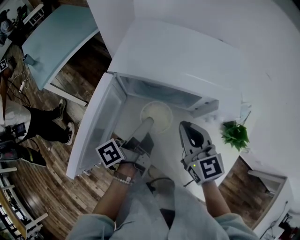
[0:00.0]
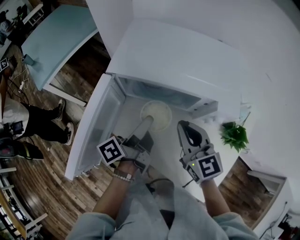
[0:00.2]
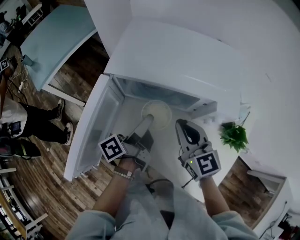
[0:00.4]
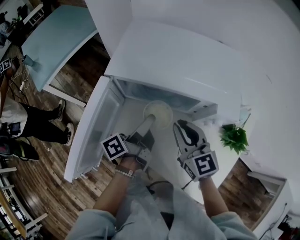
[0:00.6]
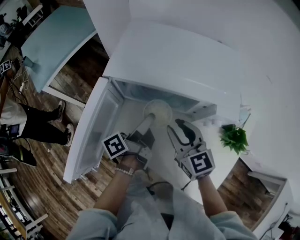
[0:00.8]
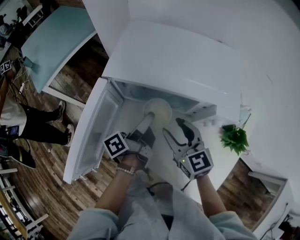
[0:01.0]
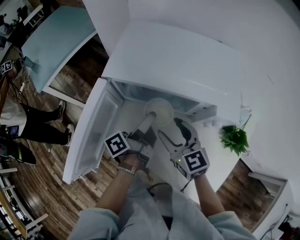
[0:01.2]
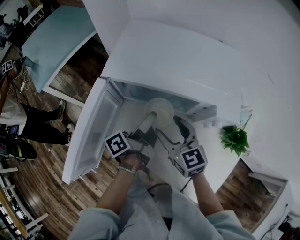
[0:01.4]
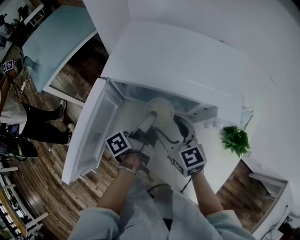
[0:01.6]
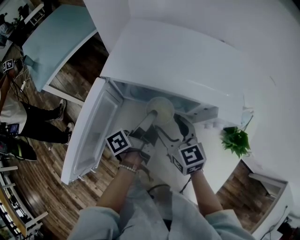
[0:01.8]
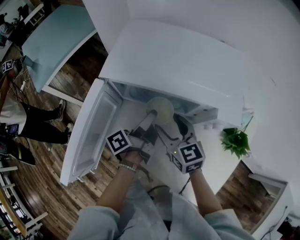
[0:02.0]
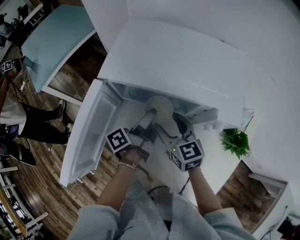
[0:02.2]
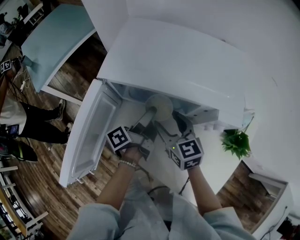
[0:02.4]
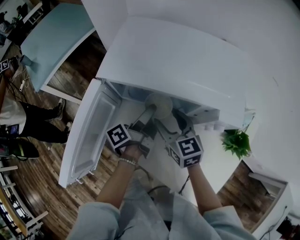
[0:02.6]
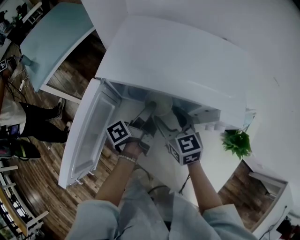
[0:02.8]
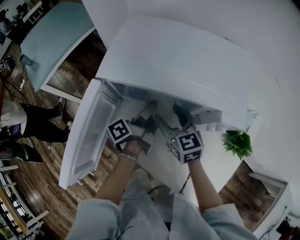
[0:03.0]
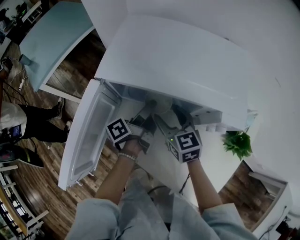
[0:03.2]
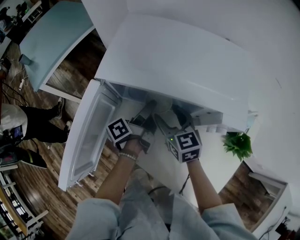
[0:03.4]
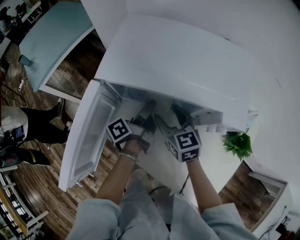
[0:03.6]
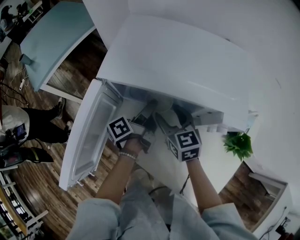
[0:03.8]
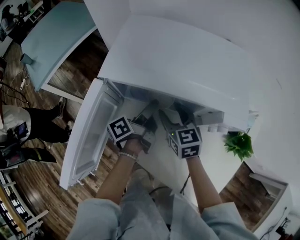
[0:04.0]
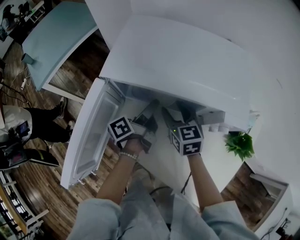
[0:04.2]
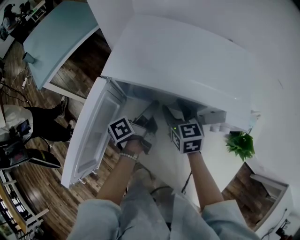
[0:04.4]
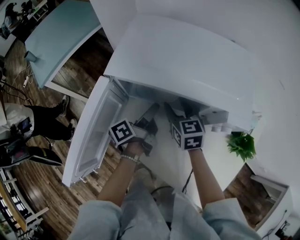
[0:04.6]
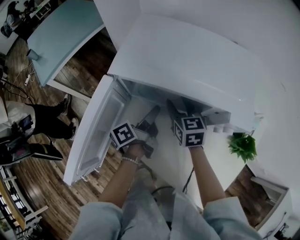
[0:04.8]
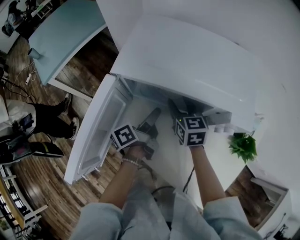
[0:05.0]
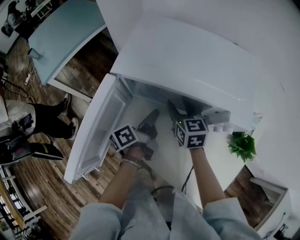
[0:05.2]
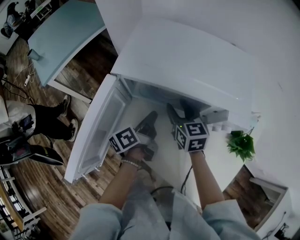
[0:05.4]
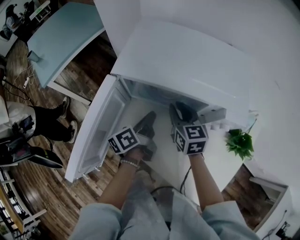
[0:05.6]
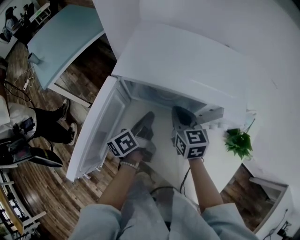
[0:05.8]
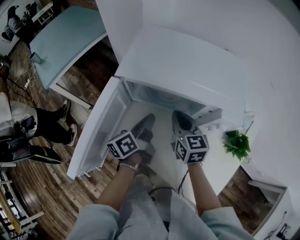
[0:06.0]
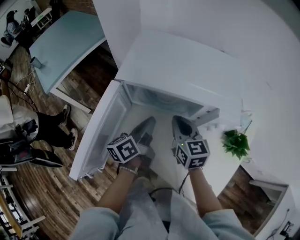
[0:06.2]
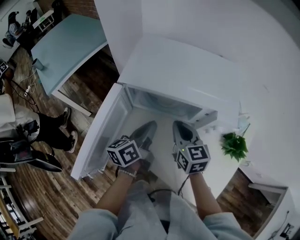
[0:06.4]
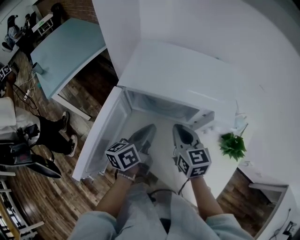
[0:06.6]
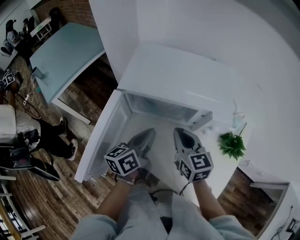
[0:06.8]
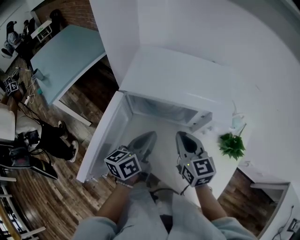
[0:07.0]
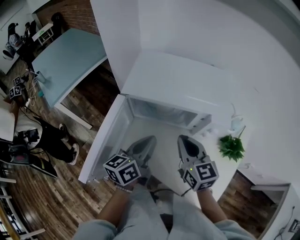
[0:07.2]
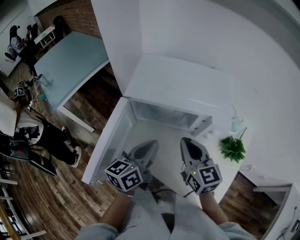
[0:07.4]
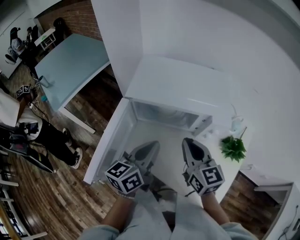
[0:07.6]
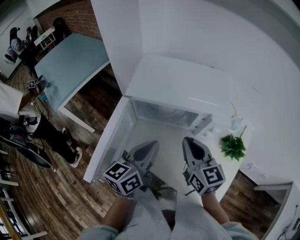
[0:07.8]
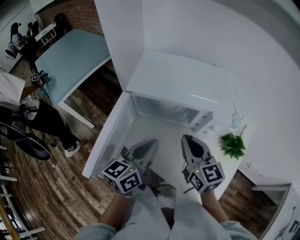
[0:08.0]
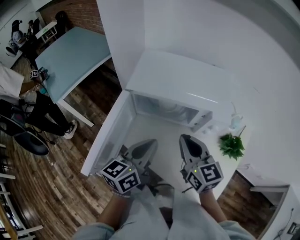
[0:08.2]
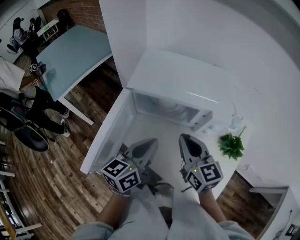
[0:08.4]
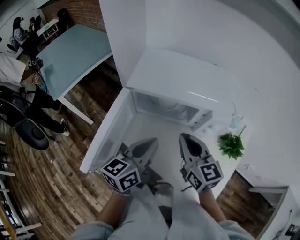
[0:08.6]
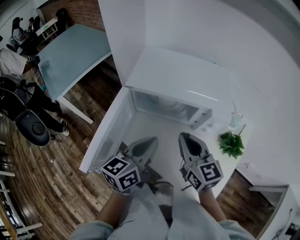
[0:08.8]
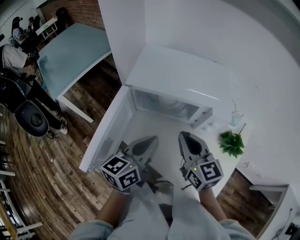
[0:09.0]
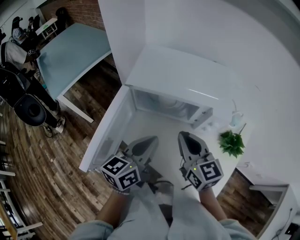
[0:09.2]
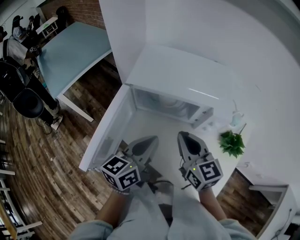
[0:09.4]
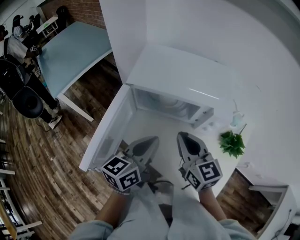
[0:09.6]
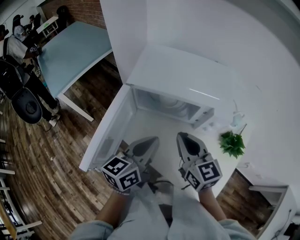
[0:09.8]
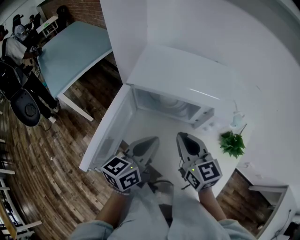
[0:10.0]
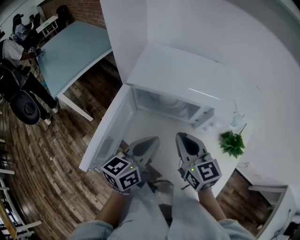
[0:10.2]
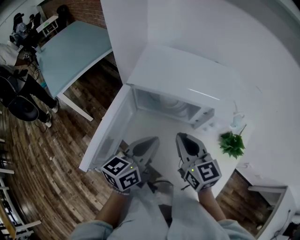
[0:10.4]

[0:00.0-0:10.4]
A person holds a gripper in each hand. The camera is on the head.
0:00.0 to 0:01.4: The right gripper is displaced downward by about 5 cm, and opens.
0:01.4 to 0:03.0: The right gripper moves some 5 cm.
0:04.4 to 0:06.0: The right gripper changes place by some 5 cm, and closes its fingers.
0:06.0 to 0:07.4: The right gripper goes approximately 10 cm upward.

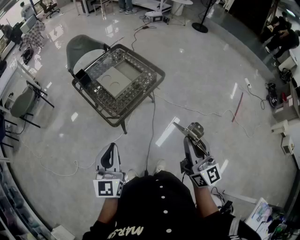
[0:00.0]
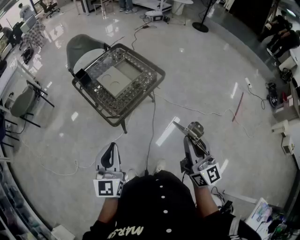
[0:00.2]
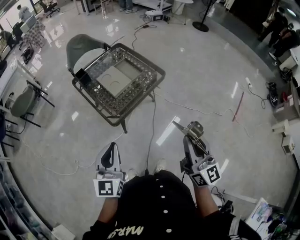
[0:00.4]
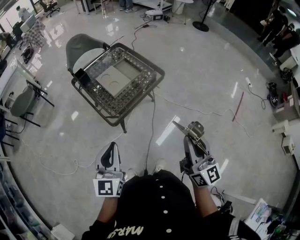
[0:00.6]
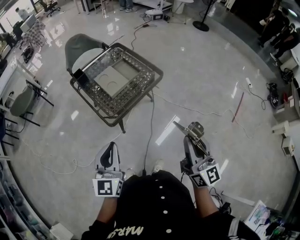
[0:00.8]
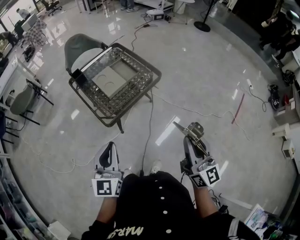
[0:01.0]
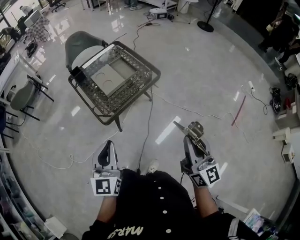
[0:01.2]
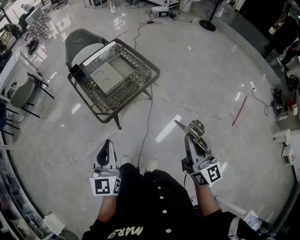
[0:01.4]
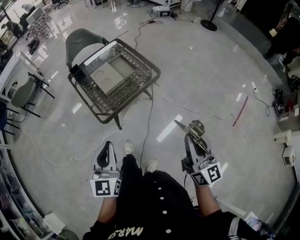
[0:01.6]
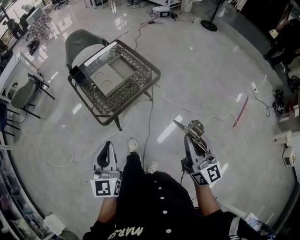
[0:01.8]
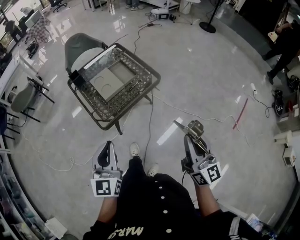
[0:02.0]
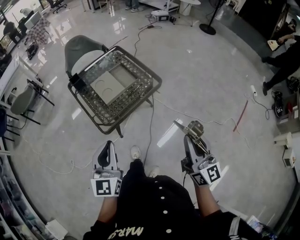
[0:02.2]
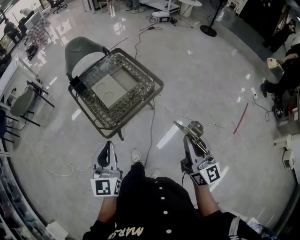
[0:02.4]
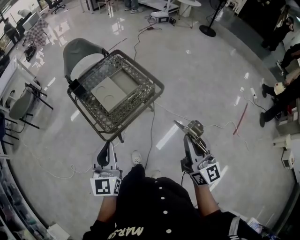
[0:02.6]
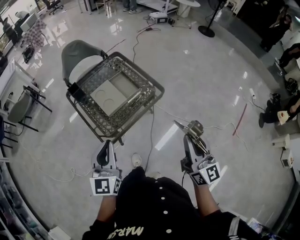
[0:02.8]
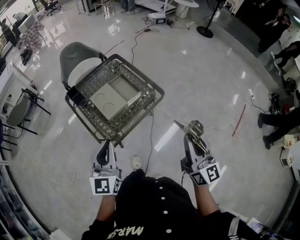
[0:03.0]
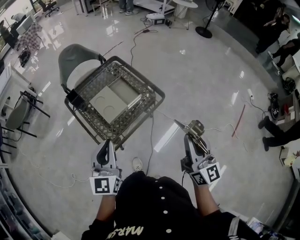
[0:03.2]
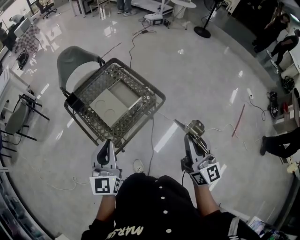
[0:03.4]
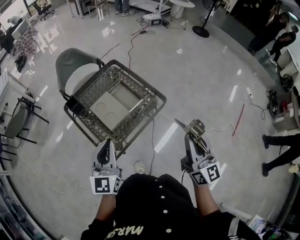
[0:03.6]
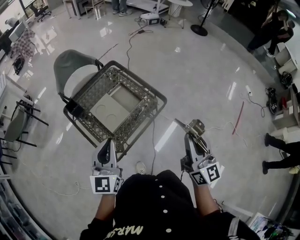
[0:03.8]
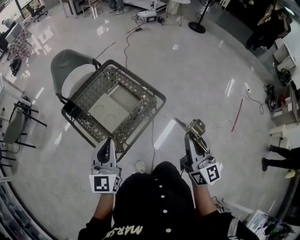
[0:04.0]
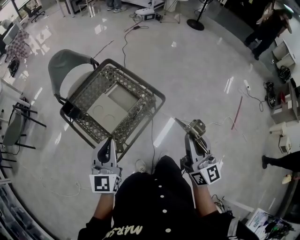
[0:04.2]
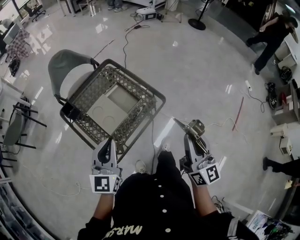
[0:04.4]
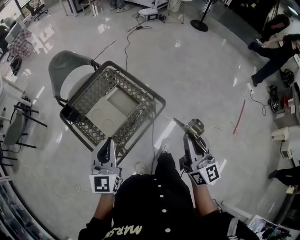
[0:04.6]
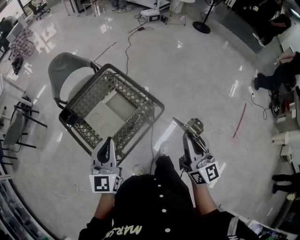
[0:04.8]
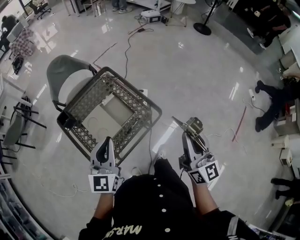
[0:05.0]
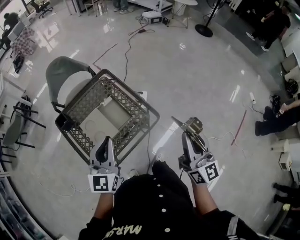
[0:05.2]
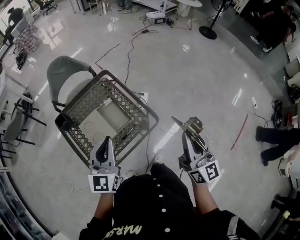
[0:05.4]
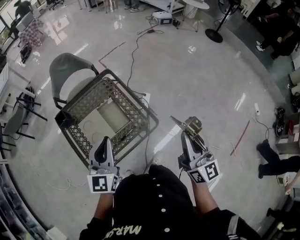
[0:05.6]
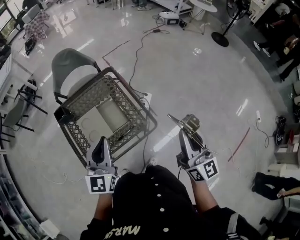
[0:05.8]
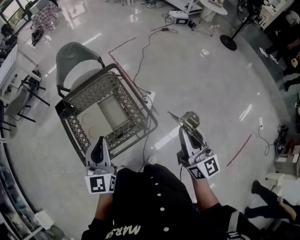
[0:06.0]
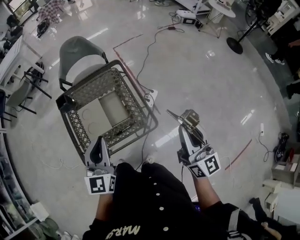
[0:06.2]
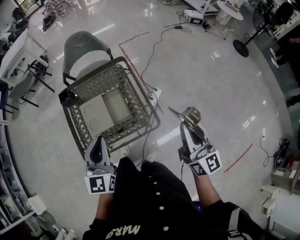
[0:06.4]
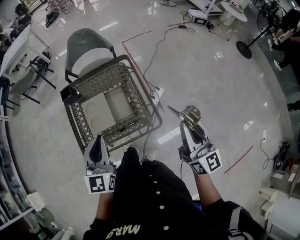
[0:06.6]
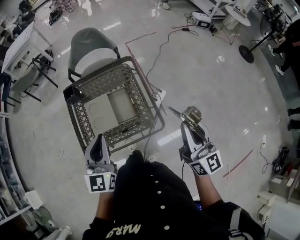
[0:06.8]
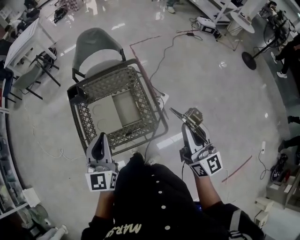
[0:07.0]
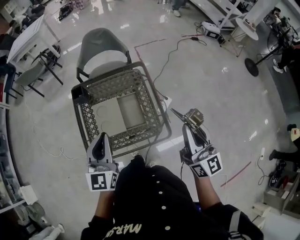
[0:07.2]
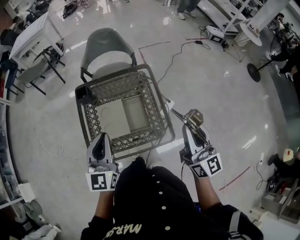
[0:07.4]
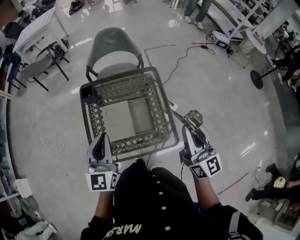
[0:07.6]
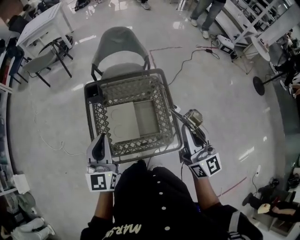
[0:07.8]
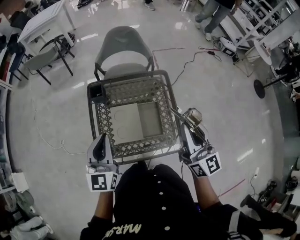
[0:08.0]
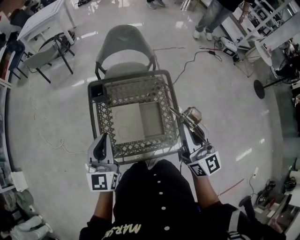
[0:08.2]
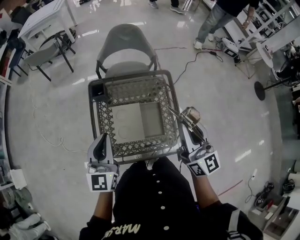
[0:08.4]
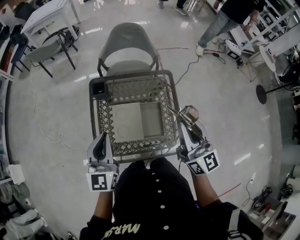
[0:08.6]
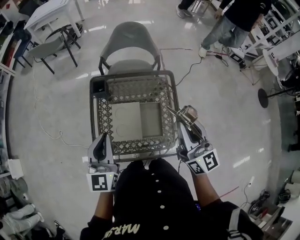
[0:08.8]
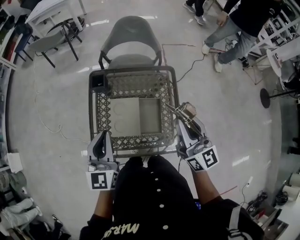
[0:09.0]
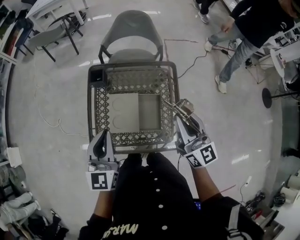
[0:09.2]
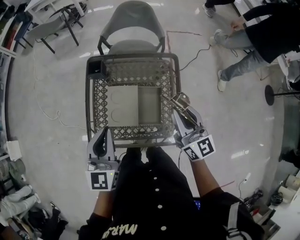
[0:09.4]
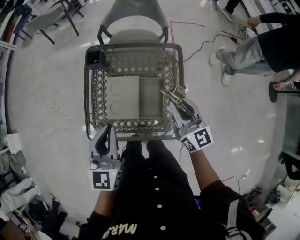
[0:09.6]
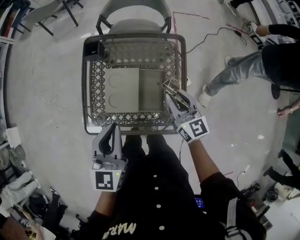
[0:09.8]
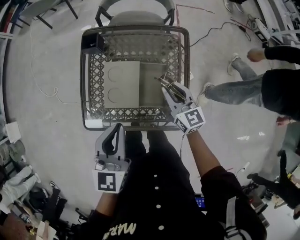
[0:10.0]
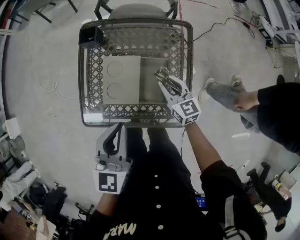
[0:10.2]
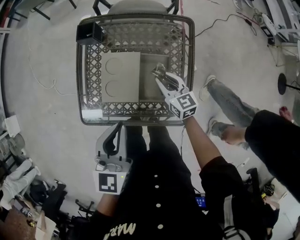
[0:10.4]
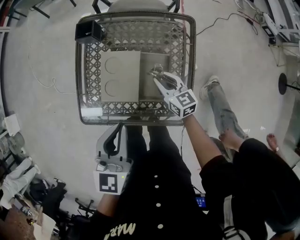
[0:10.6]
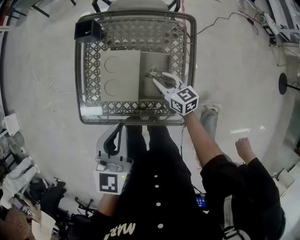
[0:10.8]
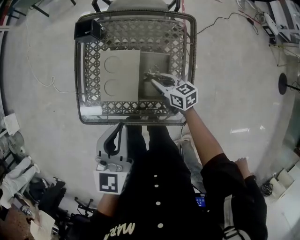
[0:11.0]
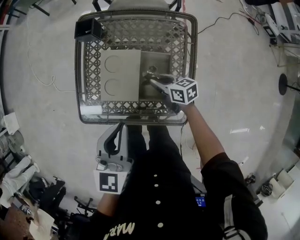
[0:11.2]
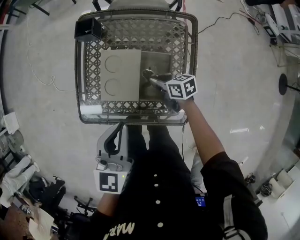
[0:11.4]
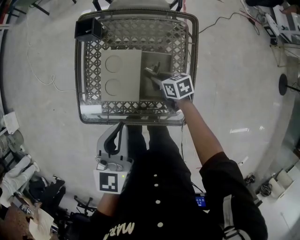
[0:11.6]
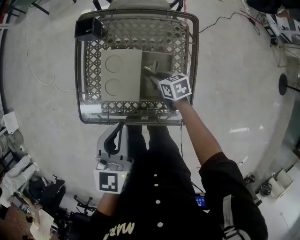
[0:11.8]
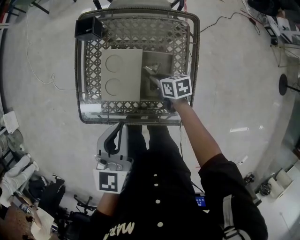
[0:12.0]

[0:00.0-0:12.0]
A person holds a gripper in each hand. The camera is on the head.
0:00.0 to 0:01.6: The grippers both shift to the right by some 10 cm.
0:01.6 to 0:03.0: The grippers both shift forward by roughly 20 cm.
0:03.0 to 0:04.4: Both grippers move forward, about 10 cm.
0:04.4 to 0:06.0: Both grippers travel together forward and to the right, roughly 25 cm. The right gripper changes its angle by about 20 degrees, while the left gripper turns by about 20 degrees.
0:06.0 to 0:07.6: The right gripper travels forward and to the left by some 20 cm. Meanwhile the left gripper is displaced to the left and forward by some 15 cm.
0:07.6 to 0:09.0: The right gripper is displaced forward and to the left by roughly 10 cm.
0:09.0 to 0:10.4: The left gripper travels downward, to the right and backward by approximately 15 cm; the right gripper goes approximately 35 cm downward, and swivels about 30 degrees.
0:10.4 to 0:12.0: The right gripper moves downward, roughly 10 cm, and changes its angle by about 40 degrees.

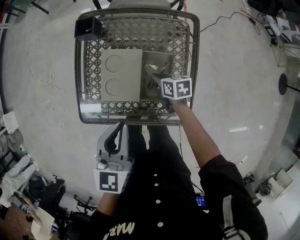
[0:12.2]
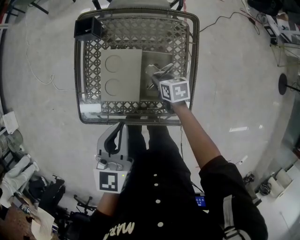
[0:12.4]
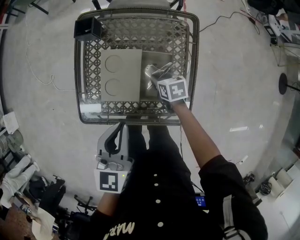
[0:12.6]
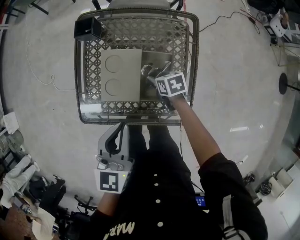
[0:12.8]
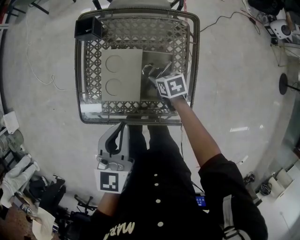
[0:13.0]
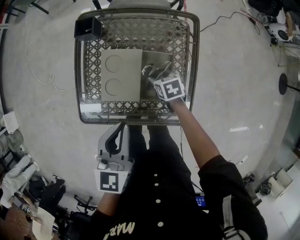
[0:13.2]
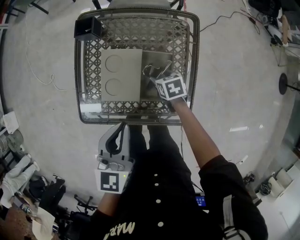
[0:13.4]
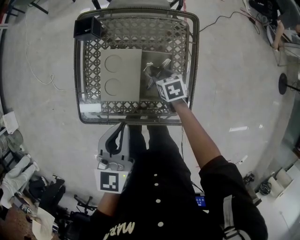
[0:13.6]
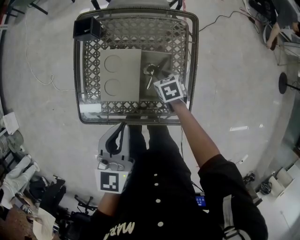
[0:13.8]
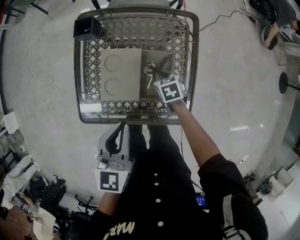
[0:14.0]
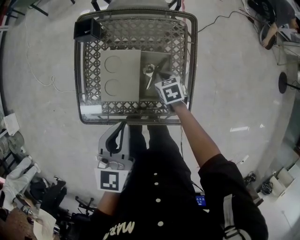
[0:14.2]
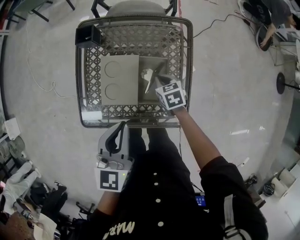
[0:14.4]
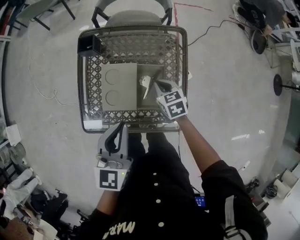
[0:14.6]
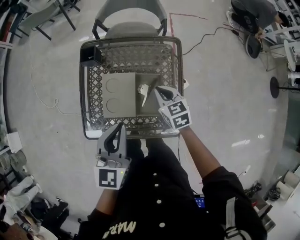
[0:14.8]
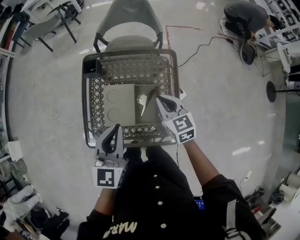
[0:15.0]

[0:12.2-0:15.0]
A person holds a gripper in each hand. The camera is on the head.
0:12.2 to 0:13.6: The right gripper turns by some 20 degrees, and opens its fingers.
0:13.6 to 0:15.0: The right gripper moves upward, roughly 25 cm, angles its fingers upward, by about 30 degrees, and closes; the left gripper shifts roughly 10 cm upward.
